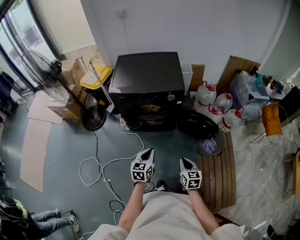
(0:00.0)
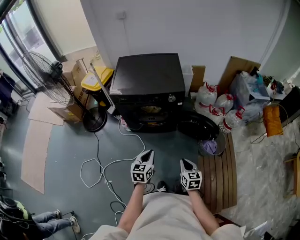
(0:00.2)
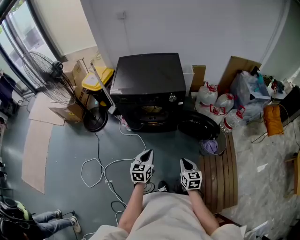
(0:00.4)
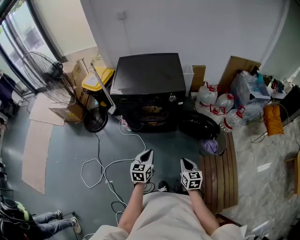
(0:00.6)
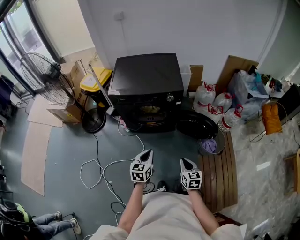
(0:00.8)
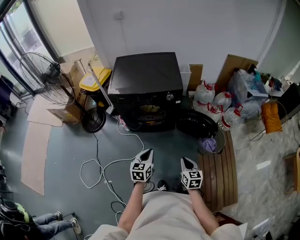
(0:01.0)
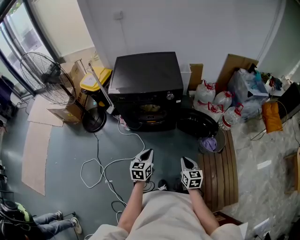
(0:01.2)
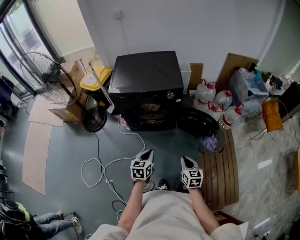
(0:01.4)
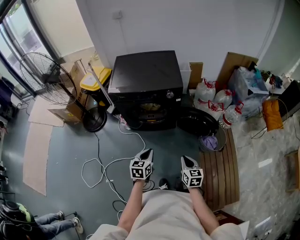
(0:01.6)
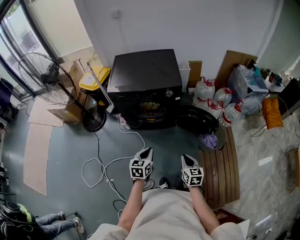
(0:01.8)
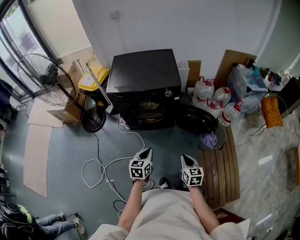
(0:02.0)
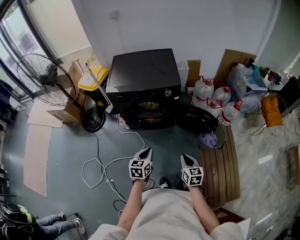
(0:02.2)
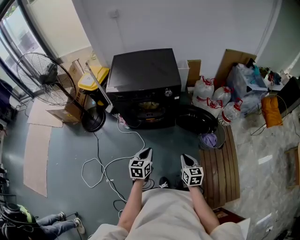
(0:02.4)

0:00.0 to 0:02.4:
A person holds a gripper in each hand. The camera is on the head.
0:00.0 to 0:01.2: The grippers make only small movements.
0:01.2 to 0:02.4: Both grippers stay about where they are.

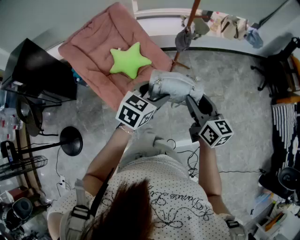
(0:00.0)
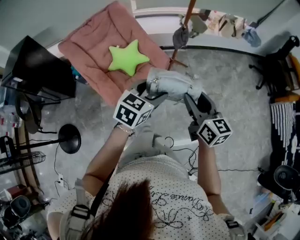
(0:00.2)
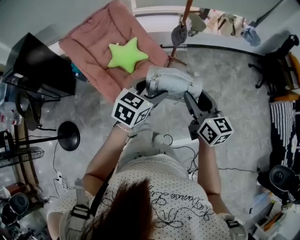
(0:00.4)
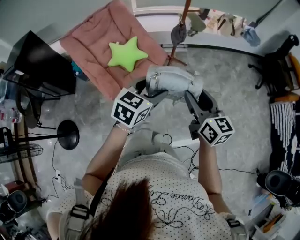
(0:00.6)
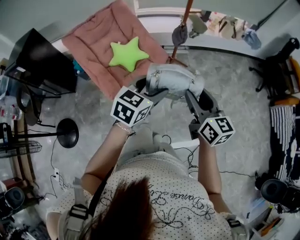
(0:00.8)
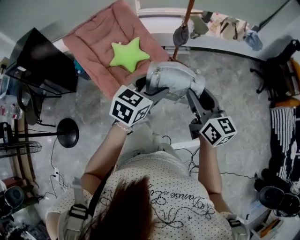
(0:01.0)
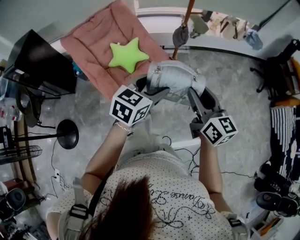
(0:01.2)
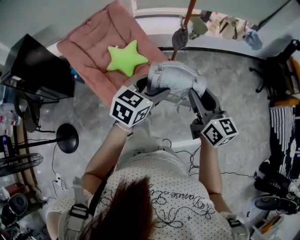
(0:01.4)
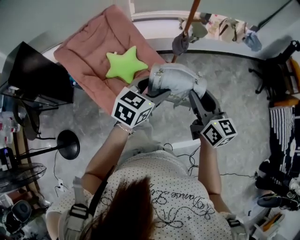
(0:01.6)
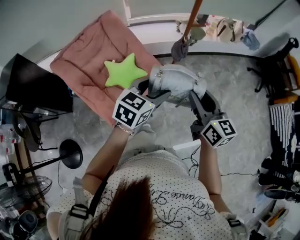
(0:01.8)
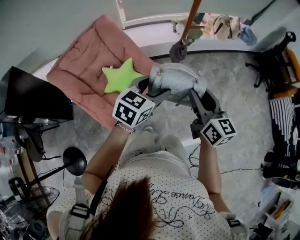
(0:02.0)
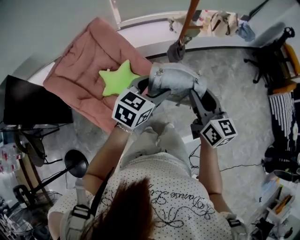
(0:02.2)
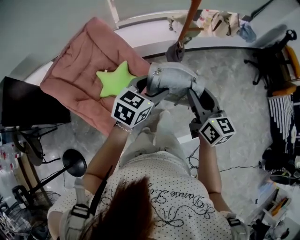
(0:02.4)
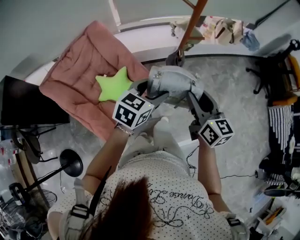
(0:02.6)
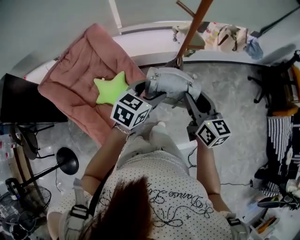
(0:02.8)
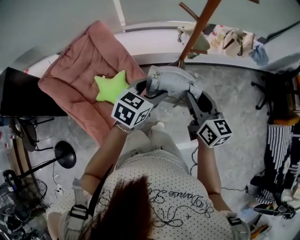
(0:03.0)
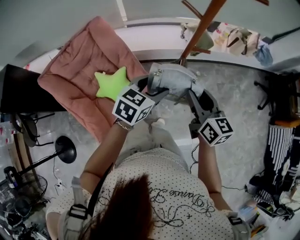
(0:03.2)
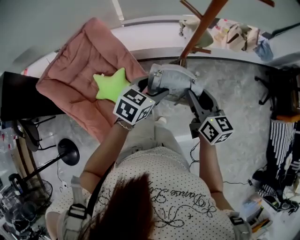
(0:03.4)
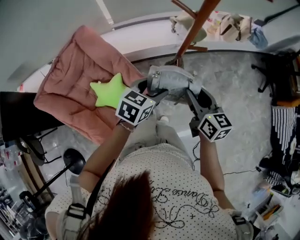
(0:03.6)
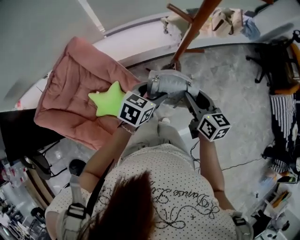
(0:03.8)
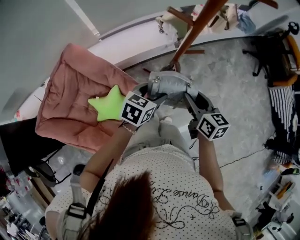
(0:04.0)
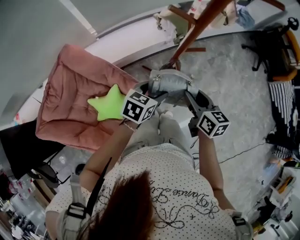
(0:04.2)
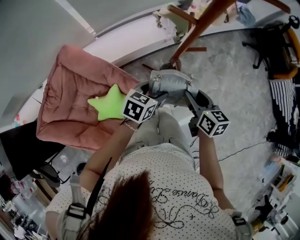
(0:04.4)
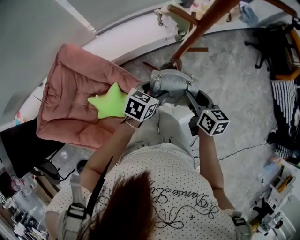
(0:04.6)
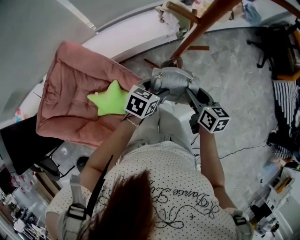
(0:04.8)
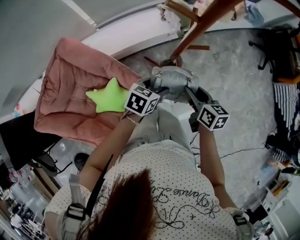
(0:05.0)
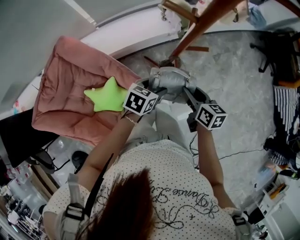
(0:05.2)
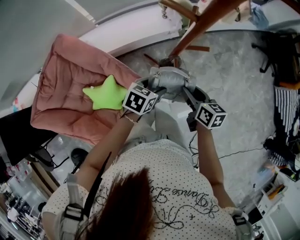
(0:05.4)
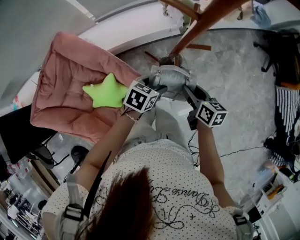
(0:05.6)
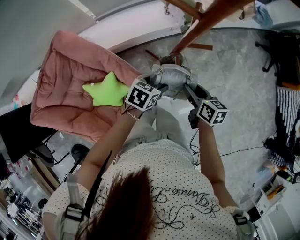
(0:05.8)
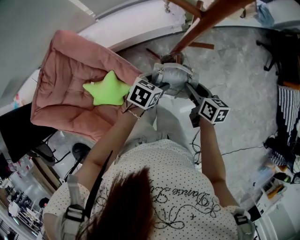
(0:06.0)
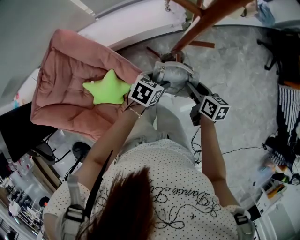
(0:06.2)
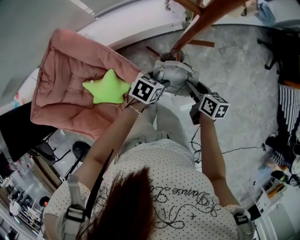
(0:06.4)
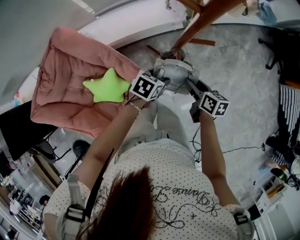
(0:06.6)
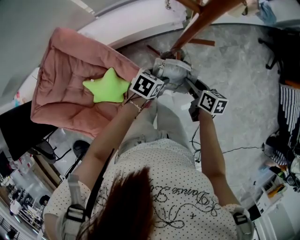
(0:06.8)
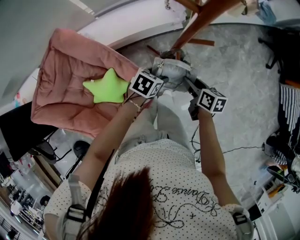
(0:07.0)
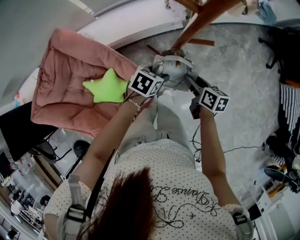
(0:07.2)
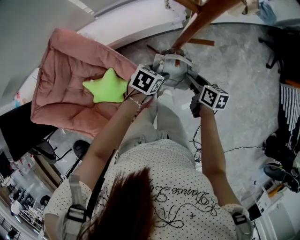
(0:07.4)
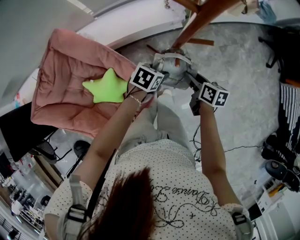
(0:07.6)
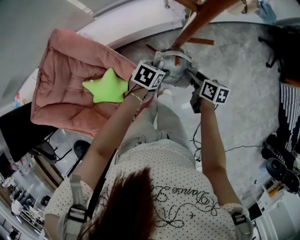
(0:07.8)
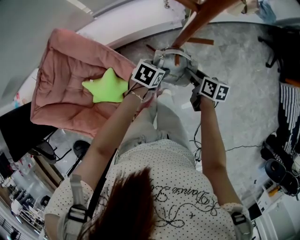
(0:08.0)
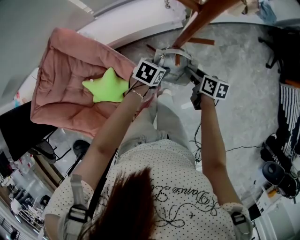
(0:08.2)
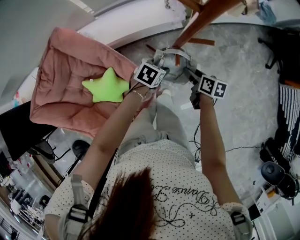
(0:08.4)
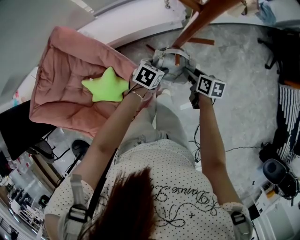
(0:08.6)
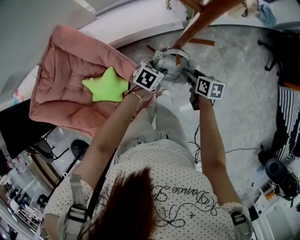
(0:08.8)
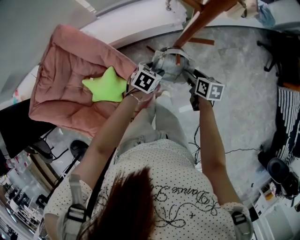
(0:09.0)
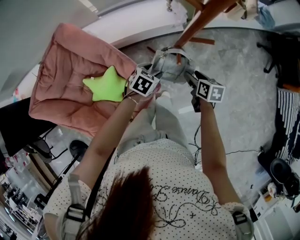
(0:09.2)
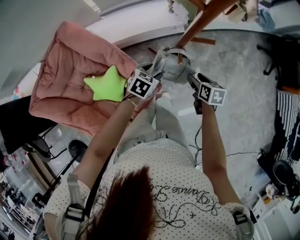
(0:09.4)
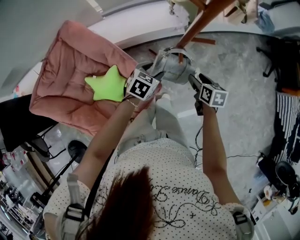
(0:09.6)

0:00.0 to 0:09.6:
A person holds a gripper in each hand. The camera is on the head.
0:00.0 to 0:01.6: The two grippers go some 5 cm forward.
0:01.6 to 0:03.2: Both grippers move forward, some 30 cm.
0:03.2 to 0:04.8: The two grippers go about 15 cm downward and forward. The left gripper rotates about 20 degrees, while the right gripper swivels roughly 30 degrees.
0:04.8 to 0:06.4: Both grippers move downward, roughly 10 cm.
0:06.4 to 0:08.0: The left gripper shifts by roughly 5 cm, while the right gripper shifts roughly 5 cm forward.
0:08.0 to 0:09.6: The left gripper moves approximately 5 cm.

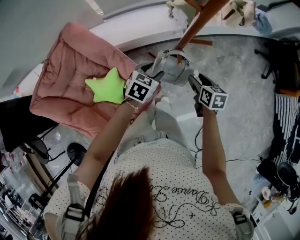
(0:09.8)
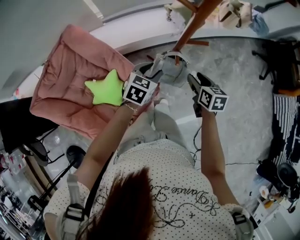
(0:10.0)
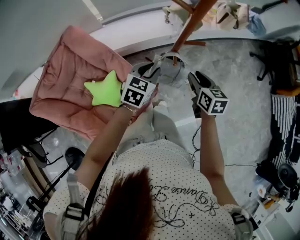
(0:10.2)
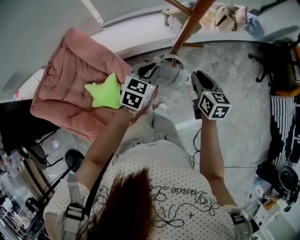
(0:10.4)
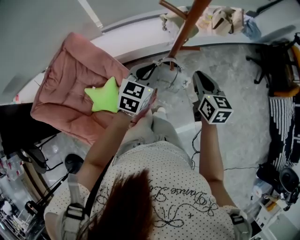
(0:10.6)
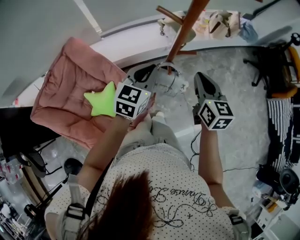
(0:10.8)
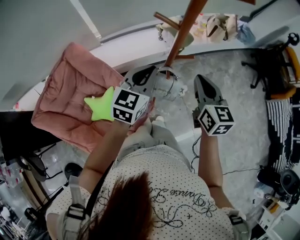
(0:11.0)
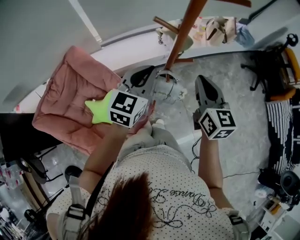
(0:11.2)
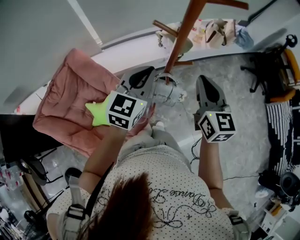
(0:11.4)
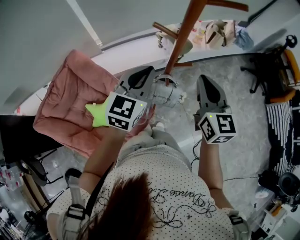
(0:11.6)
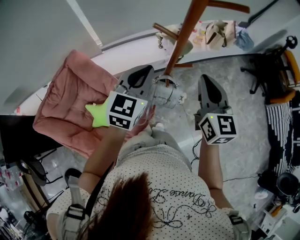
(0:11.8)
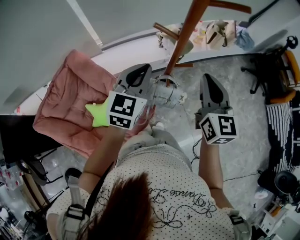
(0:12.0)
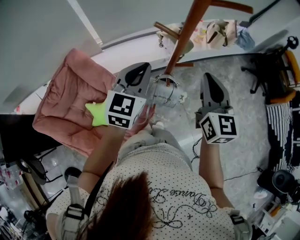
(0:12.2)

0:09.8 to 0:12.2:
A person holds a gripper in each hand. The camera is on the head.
0:09.8 to 0:11.0: Both grippers travel together upward, roughly 20 cm. The left gripper swivels roughly 30 degrees, and closes its fingers. Meanwhile the right gripper rotates roughly 30 degrees, and closes its fingers.
0:11.0 to 0:12.2: Both grippers move upward, roughly 5 cm.

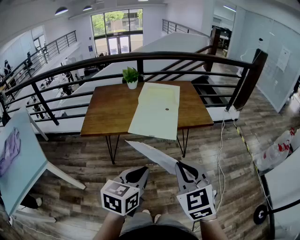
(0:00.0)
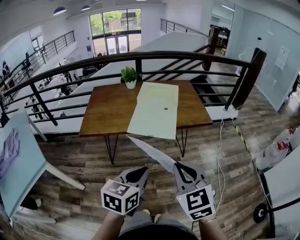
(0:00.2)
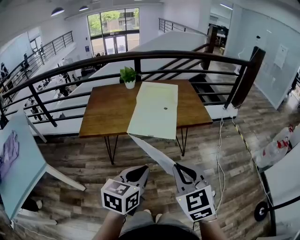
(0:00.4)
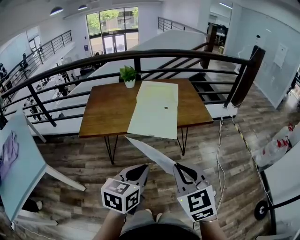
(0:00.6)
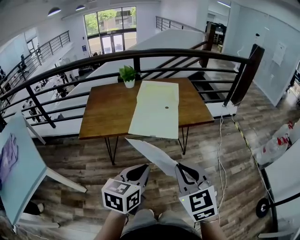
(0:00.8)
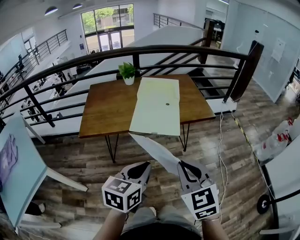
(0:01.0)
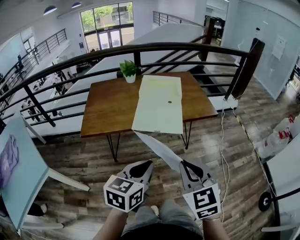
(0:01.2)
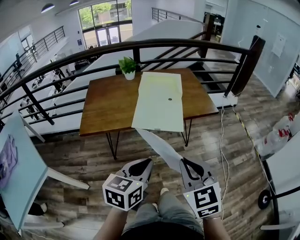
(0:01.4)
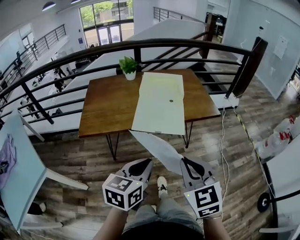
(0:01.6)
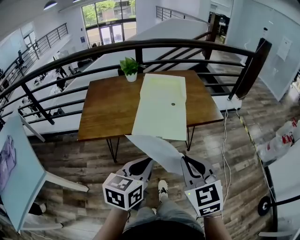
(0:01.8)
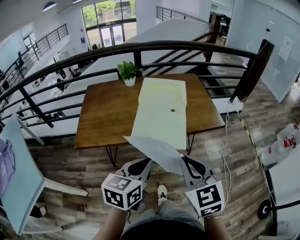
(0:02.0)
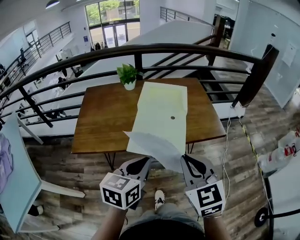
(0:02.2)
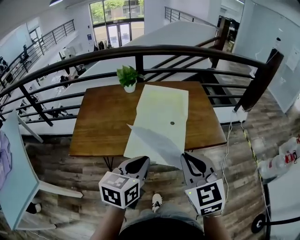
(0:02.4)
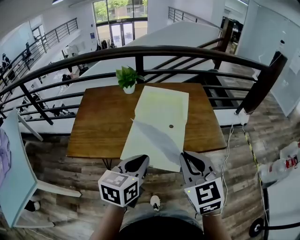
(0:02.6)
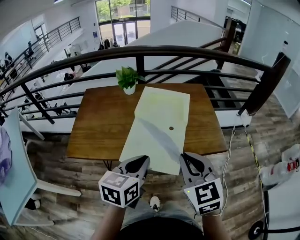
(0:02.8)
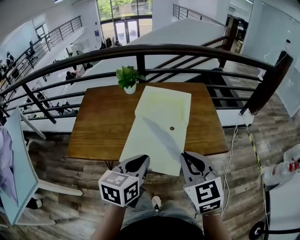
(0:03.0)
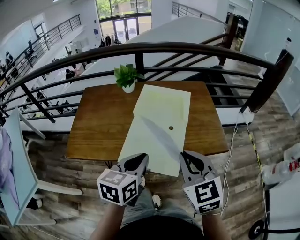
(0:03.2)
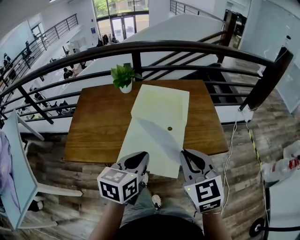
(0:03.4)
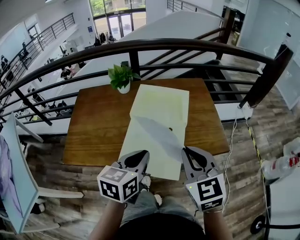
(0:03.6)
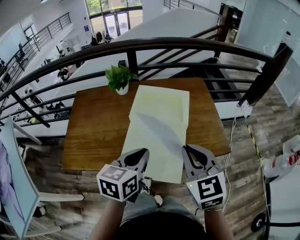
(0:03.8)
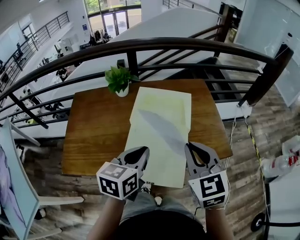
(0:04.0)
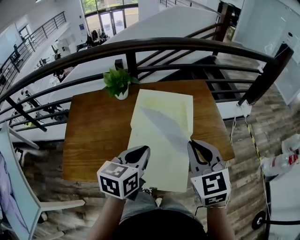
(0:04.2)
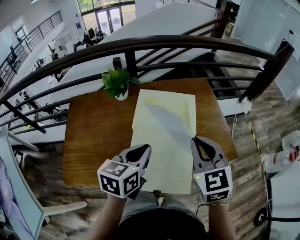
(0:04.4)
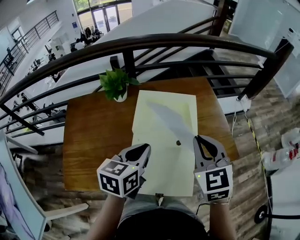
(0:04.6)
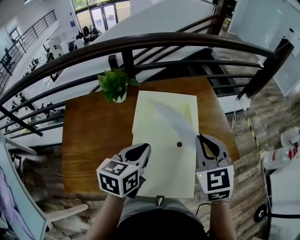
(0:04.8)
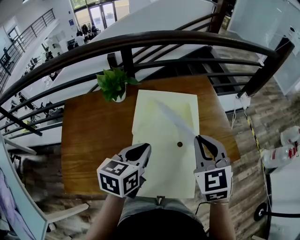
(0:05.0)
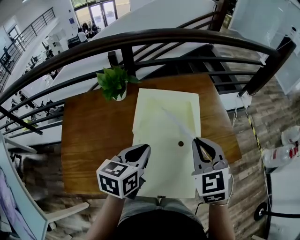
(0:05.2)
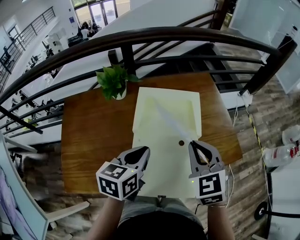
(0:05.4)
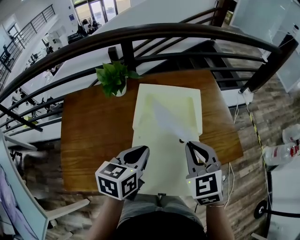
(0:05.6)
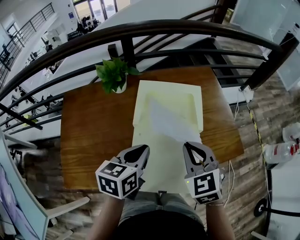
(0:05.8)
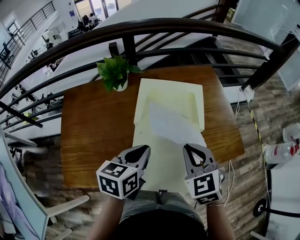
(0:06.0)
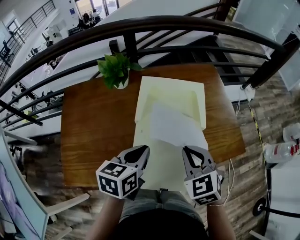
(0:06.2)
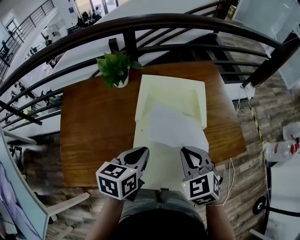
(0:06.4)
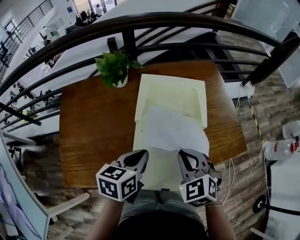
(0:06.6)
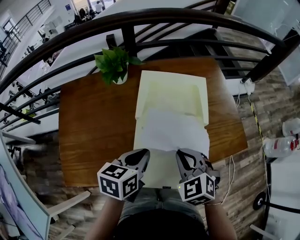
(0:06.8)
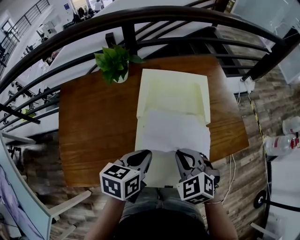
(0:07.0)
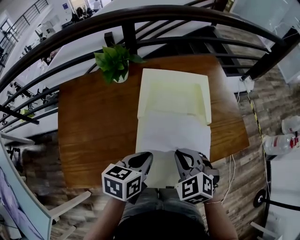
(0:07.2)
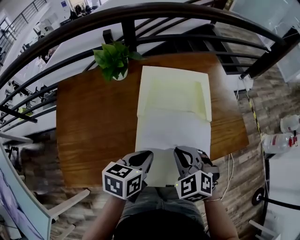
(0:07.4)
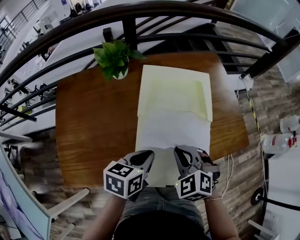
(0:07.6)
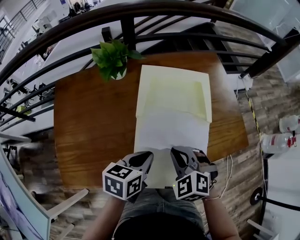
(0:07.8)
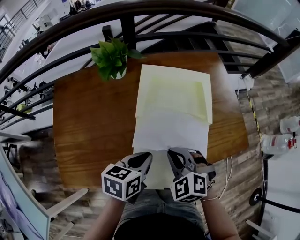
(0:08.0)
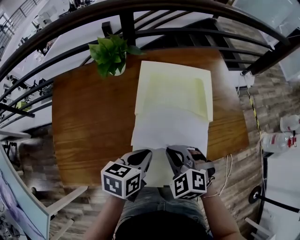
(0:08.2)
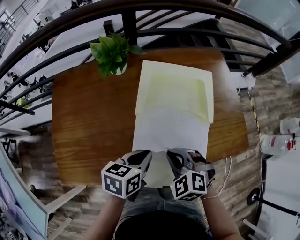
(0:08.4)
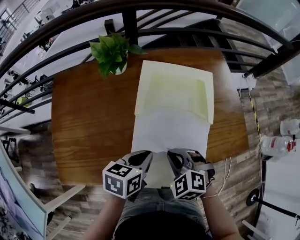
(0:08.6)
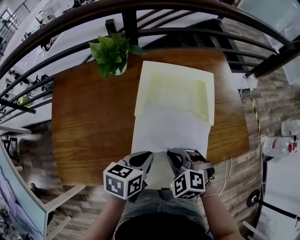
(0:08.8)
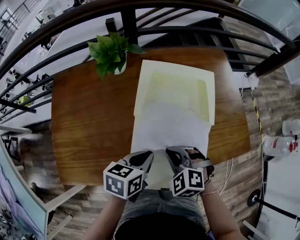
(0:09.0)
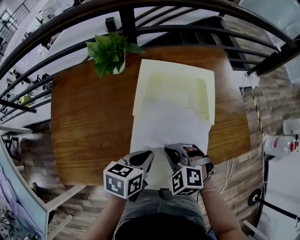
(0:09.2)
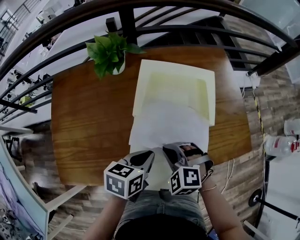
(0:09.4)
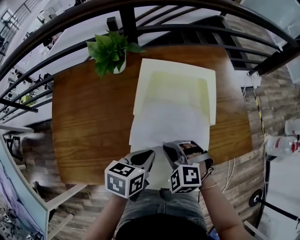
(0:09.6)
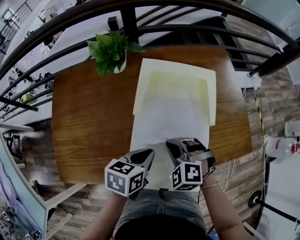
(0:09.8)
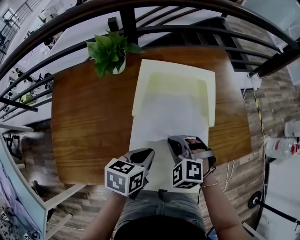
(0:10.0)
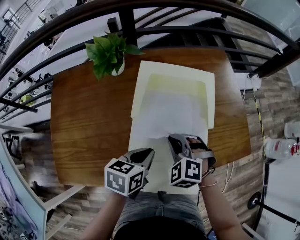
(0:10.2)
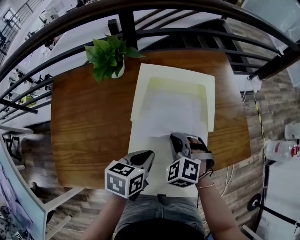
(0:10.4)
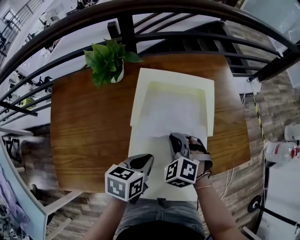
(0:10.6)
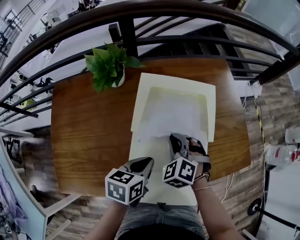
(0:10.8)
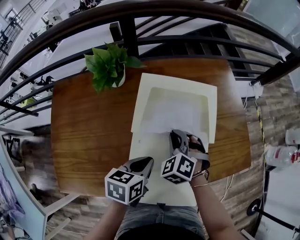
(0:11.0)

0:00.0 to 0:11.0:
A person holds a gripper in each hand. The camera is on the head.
0:00.0 to 0:01.6: The right gripper ends up some 5 cm from where it was. Meanwhile the left gripper shifts approximately 10 cm forward and to the left.
0:01.6 to 0:03.2: Both grippers move forward, some 25 cm.
0:03.2 to 0:04.8: Both grippers travel together forward, roughly 20 cm.
0:04.8 to 0:06.2: The right gripper travels downward and backward by roughly 10 cm. Meanwhile the left gripper changes place by some 5 cm.
0:06.2 to 0:07.8: The left gripper moves downward, some 5 cm. Meanwhile the right gripper goes some 10 cm downward and to the left, and rotates roughly 20 degrees.
0:07.8 to 0:09.4: The right gripper moves about 5 cm.
0:09.4 to 0:11.0: The right gripper travels forward by about 15 cm, and swivels approximately 20 degrees.
